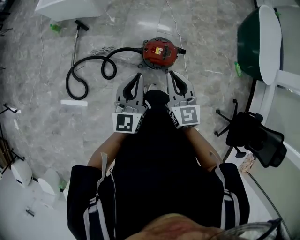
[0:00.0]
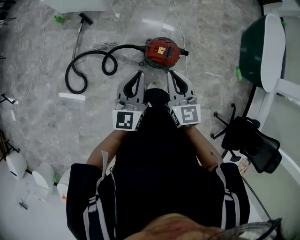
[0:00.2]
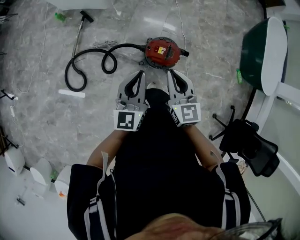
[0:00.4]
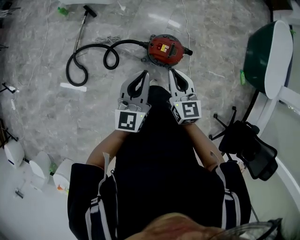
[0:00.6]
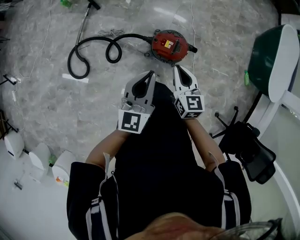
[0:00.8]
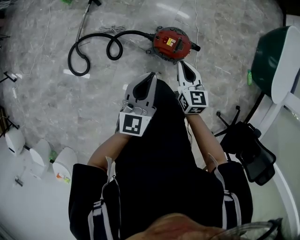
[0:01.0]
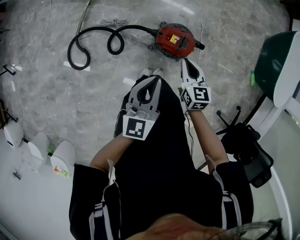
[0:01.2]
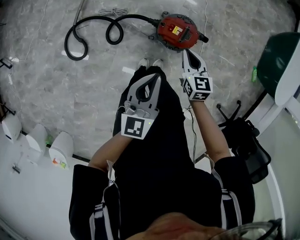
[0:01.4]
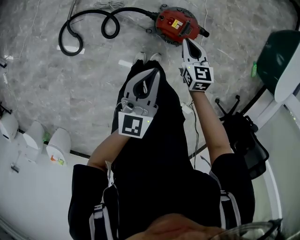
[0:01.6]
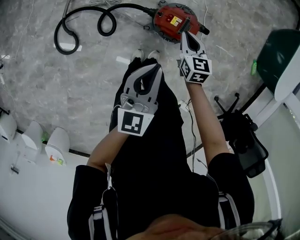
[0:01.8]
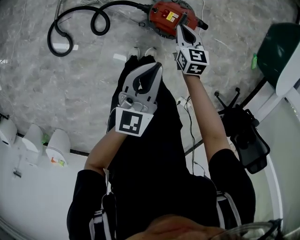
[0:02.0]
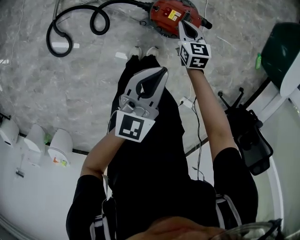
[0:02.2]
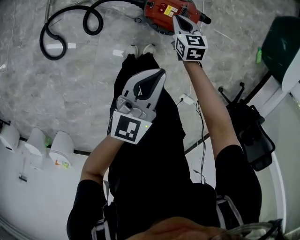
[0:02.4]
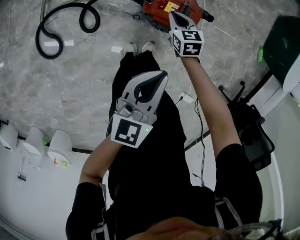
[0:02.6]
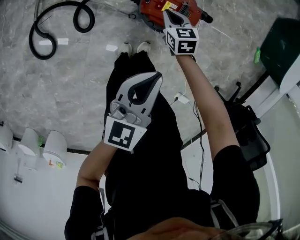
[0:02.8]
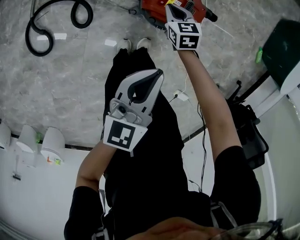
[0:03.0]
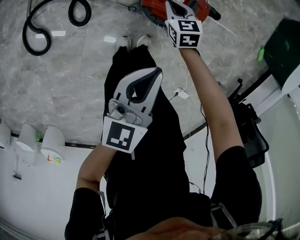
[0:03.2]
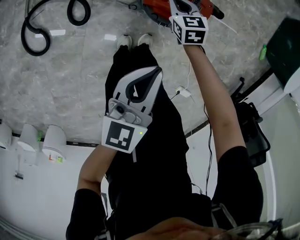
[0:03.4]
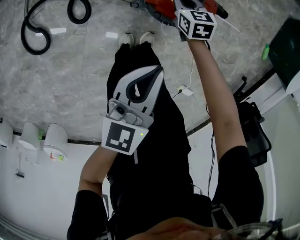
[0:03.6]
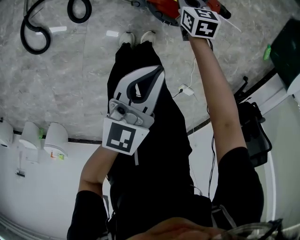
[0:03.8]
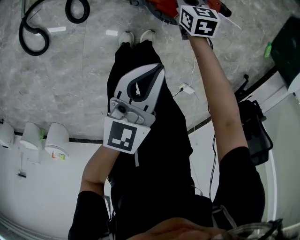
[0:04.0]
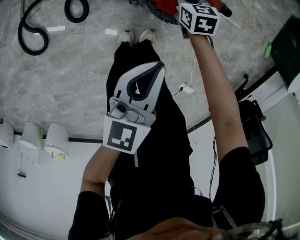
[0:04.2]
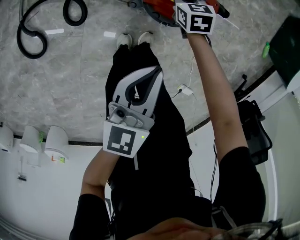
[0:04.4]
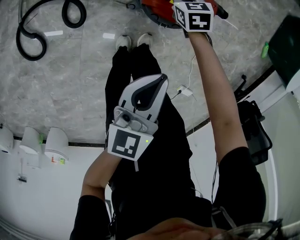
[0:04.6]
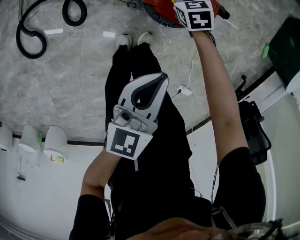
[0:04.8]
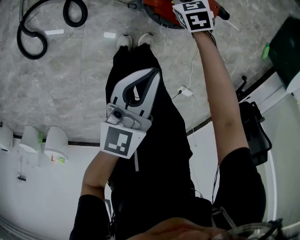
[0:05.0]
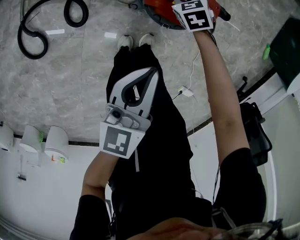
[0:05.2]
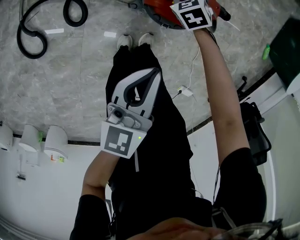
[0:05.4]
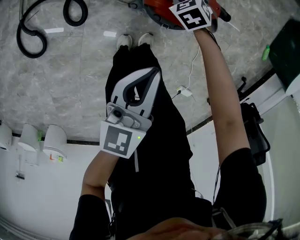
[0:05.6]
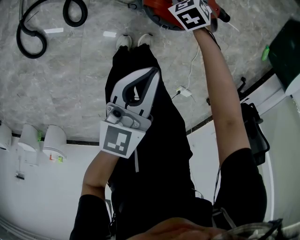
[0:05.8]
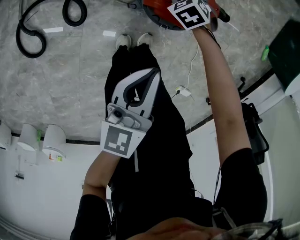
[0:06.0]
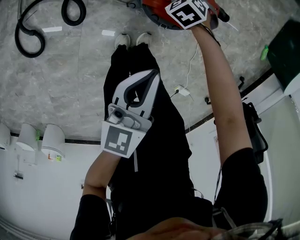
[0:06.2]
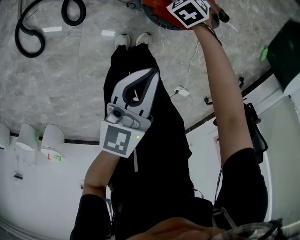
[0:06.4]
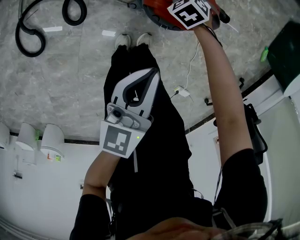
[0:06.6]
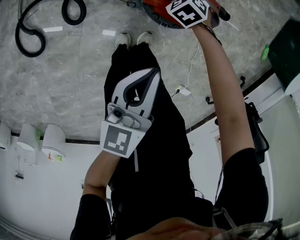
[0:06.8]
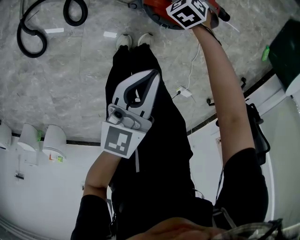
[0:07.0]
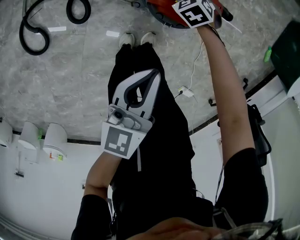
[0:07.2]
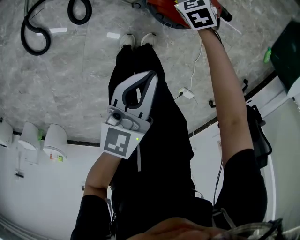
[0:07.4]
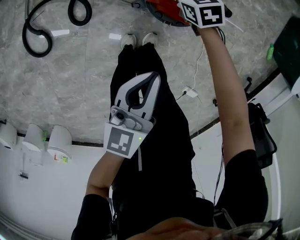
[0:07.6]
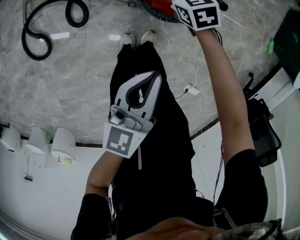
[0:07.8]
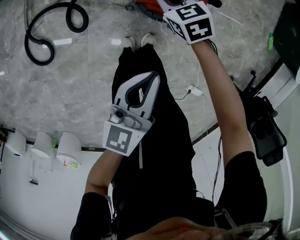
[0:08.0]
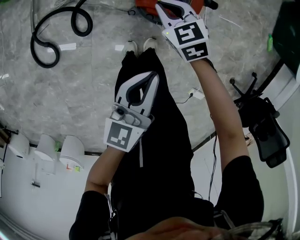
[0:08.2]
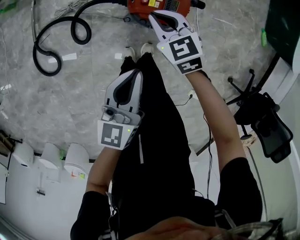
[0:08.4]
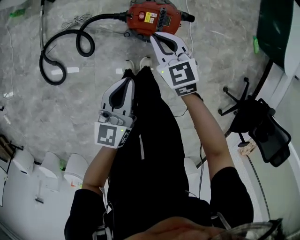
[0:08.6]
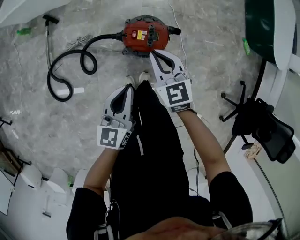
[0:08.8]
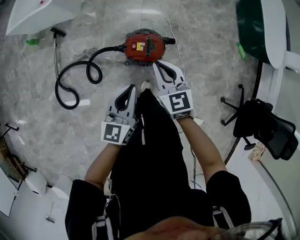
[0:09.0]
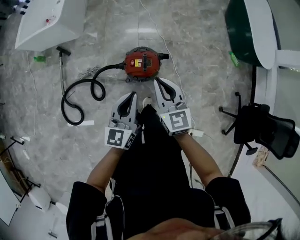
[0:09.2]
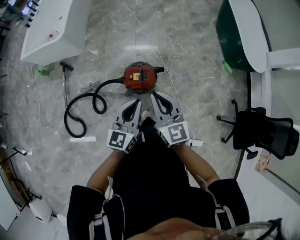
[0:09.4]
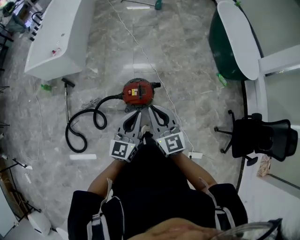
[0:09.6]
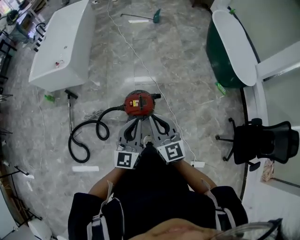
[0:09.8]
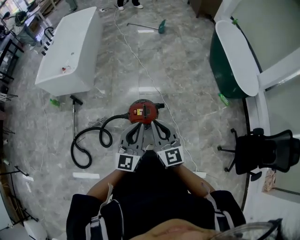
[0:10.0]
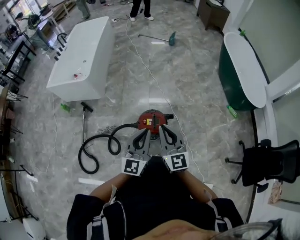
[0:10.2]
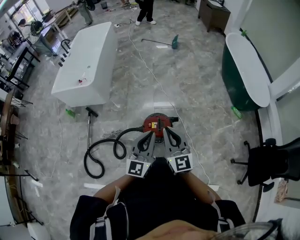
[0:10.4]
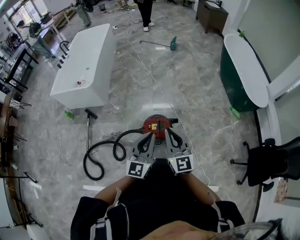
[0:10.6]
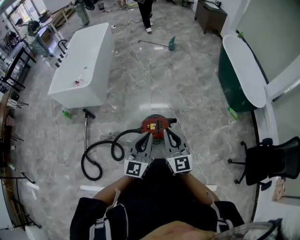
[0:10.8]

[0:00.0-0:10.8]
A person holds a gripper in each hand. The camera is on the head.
0:00.0 to 0:01.6: The left gripper travels downward by some 10 cm. The right gripper is displaced downward and forward by some 25 cm, and turns by about 20 degrees.
0:01.6 to 0:03.0: The right gripper travels downward by some 30 cm; the left gripper is displaced downward by approximately 20 cm, and changes its angle by about 20 degrees.
0:03.0 to 0:04.6: Both grippers move downward, about 5 cm.
0:04.6 to 0:06.2: The right gripper changes its angle by about 40 degrees.
0:06.2 to 0:07.8: The left gripper changes place by about 5 cm. Meanwhile the right gripper is displaced upward by roughly 10 cm, and changes its angle by approximately 30 degrees.
0:07.8 to 0:09.2: The left gripper moves upward, roughly 25 cm, and turns by some 30 degrees. Meanwhile the right gripper heads upward, covering roughly 50 cm, and points its fingers about 40 degrees further upward.
0:09.2 to 0:10.8: The left gripper moves upward, roughly 10 cm, and turns by some 20 degrees. The right gripper shifts roughly 15 cm upward and backward.

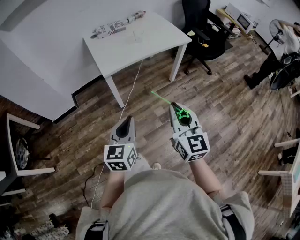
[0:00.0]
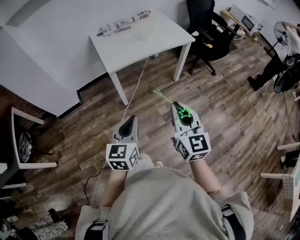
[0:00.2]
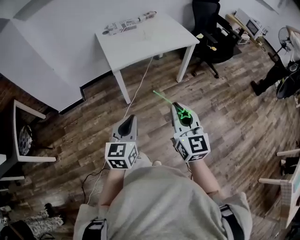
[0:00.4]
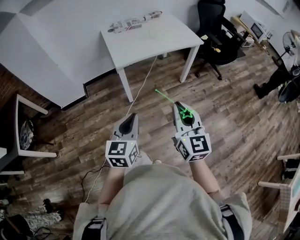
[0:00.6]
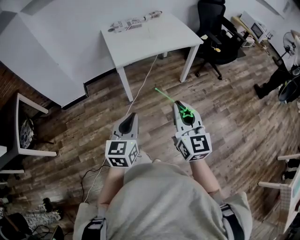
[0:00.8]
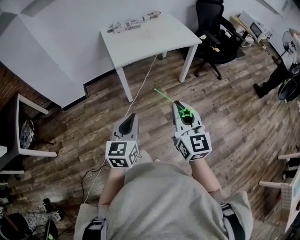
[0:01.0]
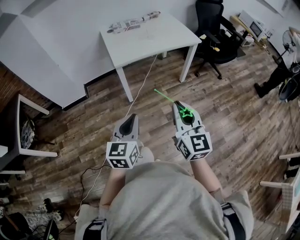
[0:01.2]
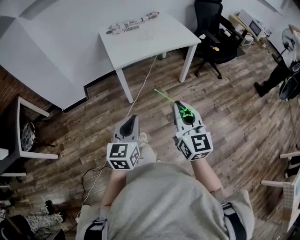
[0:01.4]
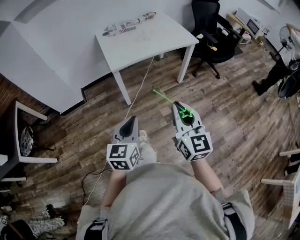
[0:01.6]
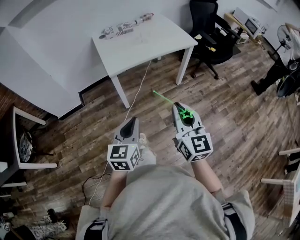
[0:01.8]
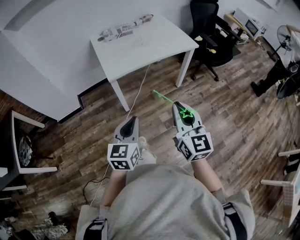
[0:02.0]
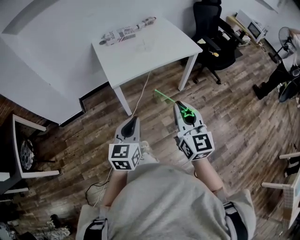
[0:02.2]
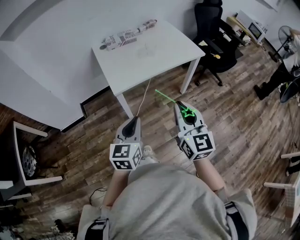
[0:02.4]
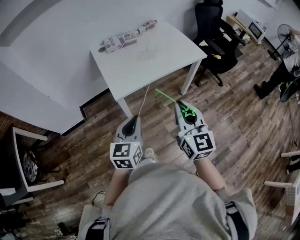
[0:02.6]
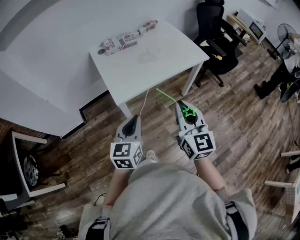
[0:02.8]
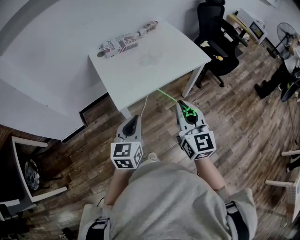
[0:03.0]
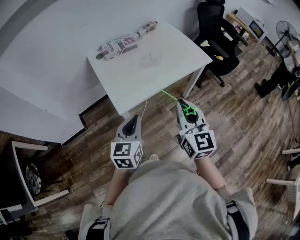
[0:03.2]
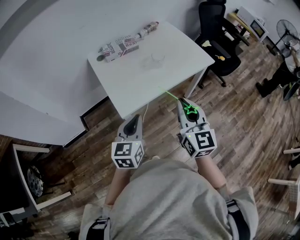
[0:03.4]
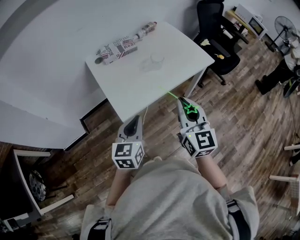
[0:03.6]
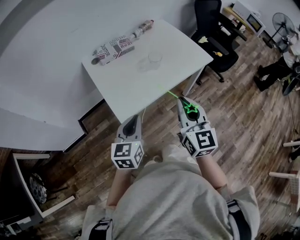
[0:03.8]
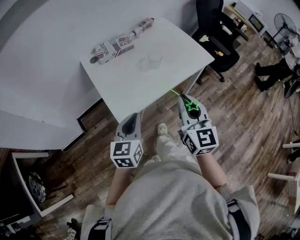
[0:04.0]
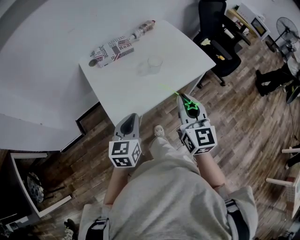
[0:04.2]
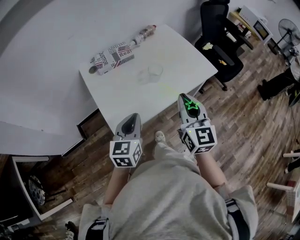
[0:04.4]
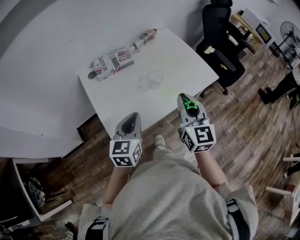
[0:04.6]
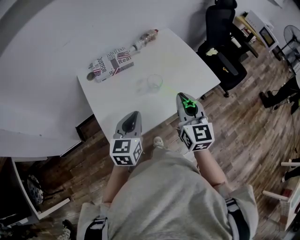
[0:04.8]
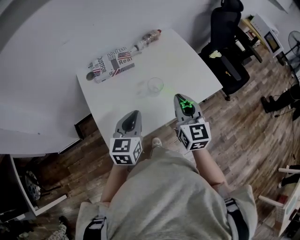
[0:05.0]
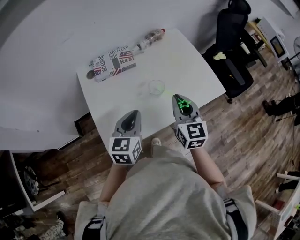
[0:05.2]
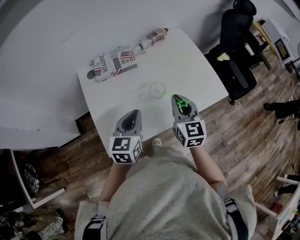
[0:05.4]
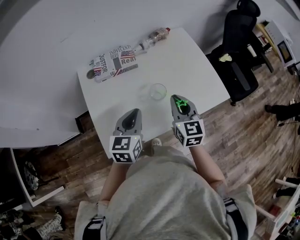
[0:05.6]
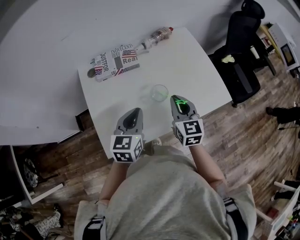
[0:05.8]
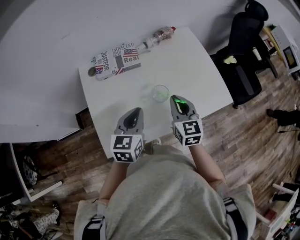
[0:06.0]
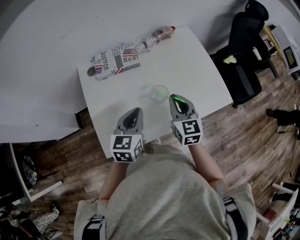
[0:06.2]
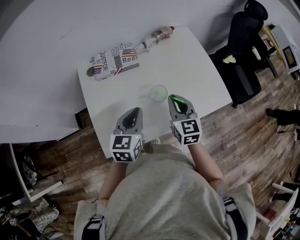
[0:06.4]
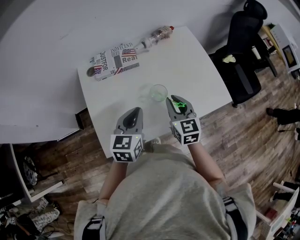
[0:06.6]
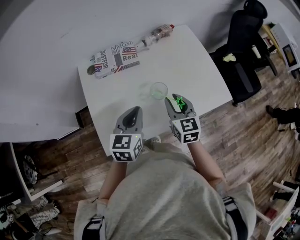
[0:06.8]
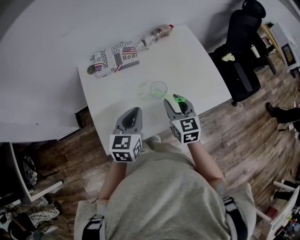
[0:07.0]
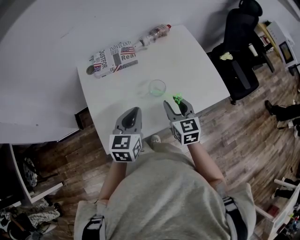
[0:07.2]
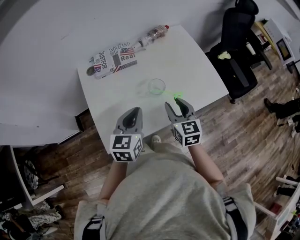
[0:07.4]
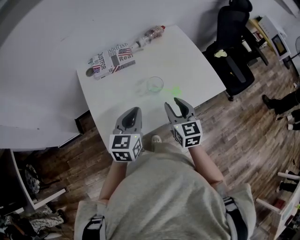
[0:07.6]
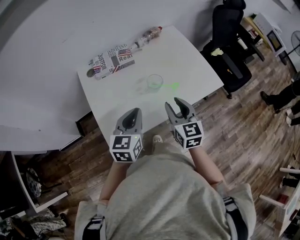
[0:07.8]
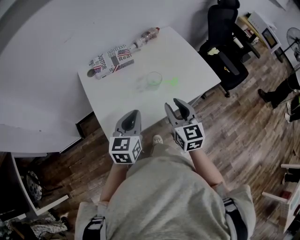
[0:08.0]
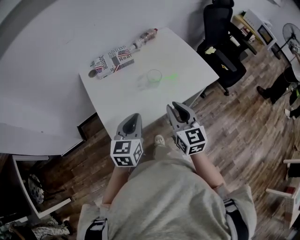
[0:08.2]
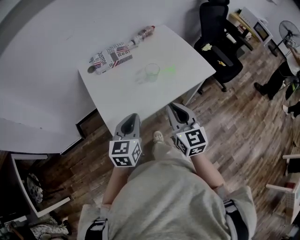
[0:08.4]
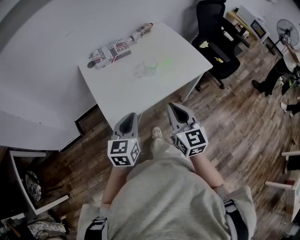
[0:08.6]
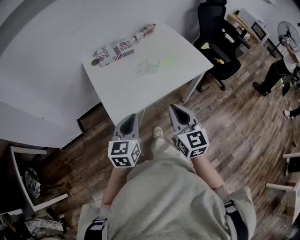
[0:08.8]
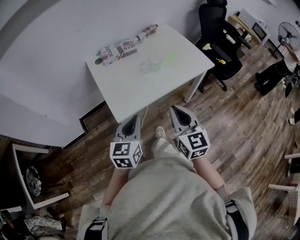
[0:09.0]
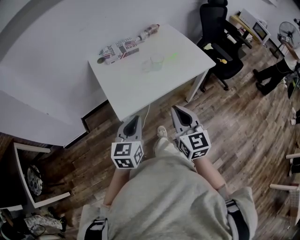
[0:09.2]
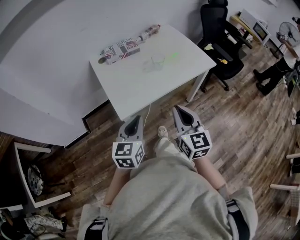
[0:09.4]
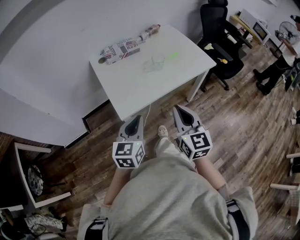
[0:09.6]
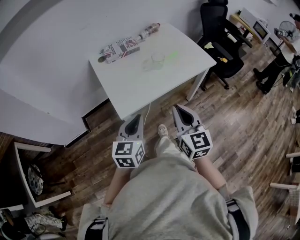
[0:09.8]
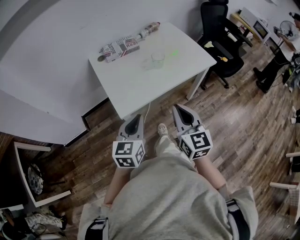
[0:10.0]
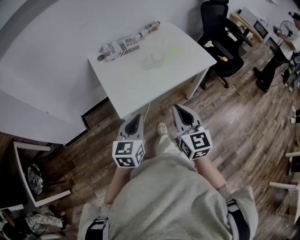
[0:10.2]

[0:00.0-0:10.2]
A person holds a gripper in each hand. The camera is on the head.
0:00.0 to 0:01.4: The two grippers go some 5 cm backward.
0:01.4 to 0:03.0: Both grippers travel together forward, about 35 cm.
0:03.0 to 0:04.4: Both grippers move forward, roughly 20 cm.
0:04.4 to 0:05.8: The right gripper shifts approximately 25 cm forward and downward, and rotates about 20 degrees. Meanwhile the left gripper shifts some 20 cm forward.
0:05.8 to 0:07.2: The right gripper opens.
0:07.2 to 0:08.8: Both grippers travel together backward, some 25 cm. The right gripper closes up.
0:08.8 to 0:10.2: The grippers stay close to where they were, moving slightly.

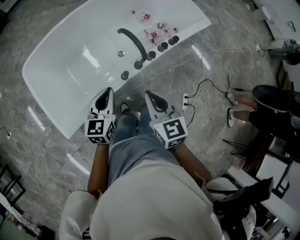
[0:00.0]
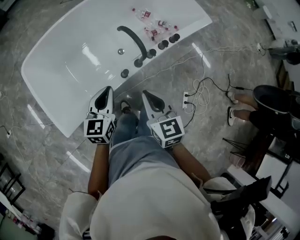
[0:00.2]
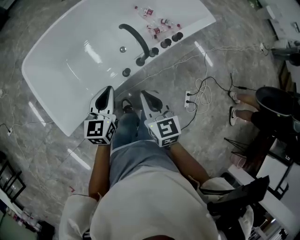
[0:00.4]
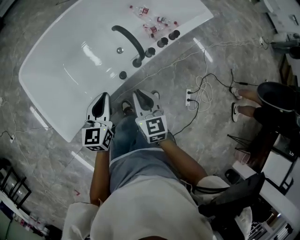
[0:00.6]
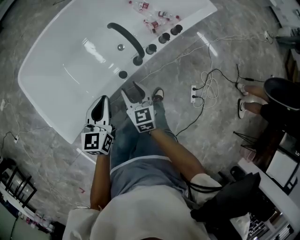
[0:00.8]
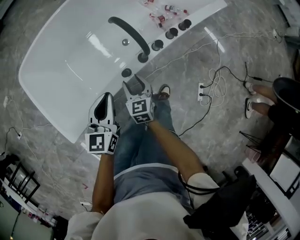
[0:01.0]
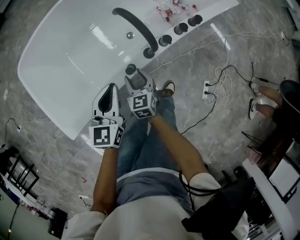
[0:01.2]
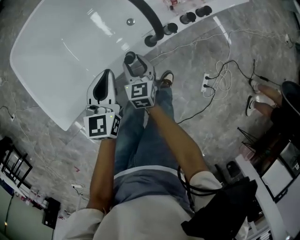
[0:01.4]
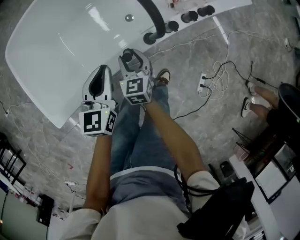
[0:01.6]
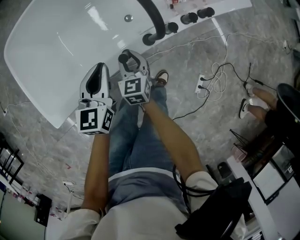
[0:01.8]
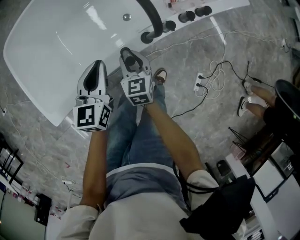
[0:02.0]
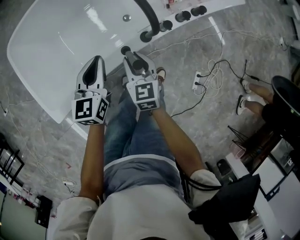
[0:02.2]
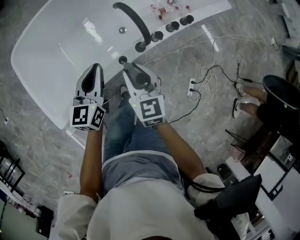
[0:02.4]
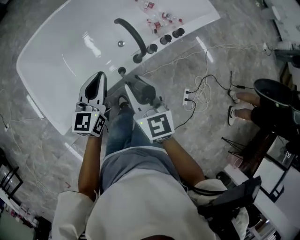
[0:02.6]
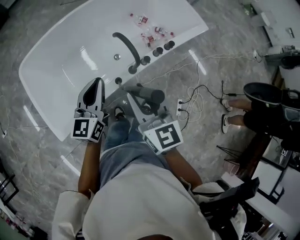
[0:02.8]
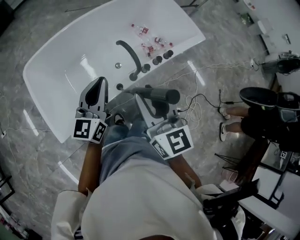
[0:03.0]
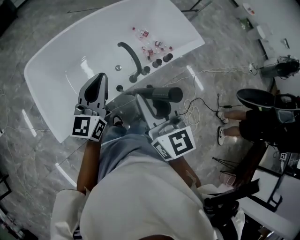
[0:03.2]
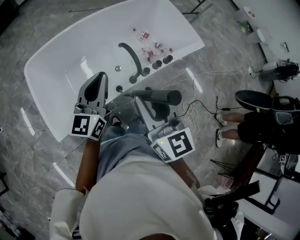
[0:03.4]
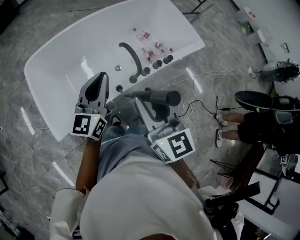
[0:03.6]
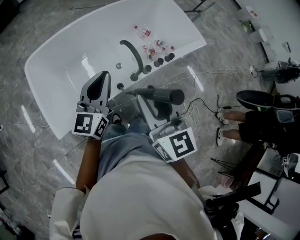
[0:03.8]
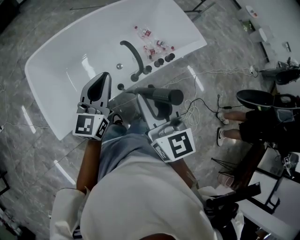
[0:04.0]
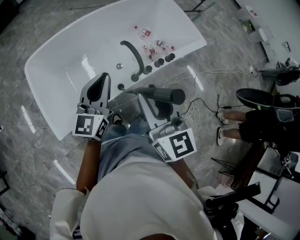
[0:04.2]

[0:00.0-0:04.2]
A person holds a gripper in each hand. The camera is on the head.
0:00.0 to 0:01.4: The left gripper travels downward by some 30 cm. The right gripper heads downward, covering approximately 50 cm, and opens up.
0:01.4 to 0:02.8: The two grippers go roughly 50 cm upward. The right gripper changes its angle by approximately 20 degrees.
0:02.8 to 0:04.2: Both grippers move upward, some 15 cm.
